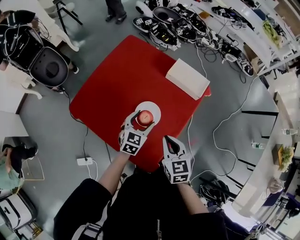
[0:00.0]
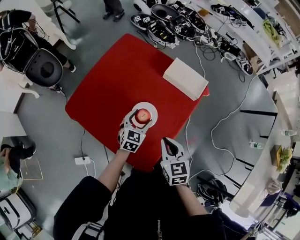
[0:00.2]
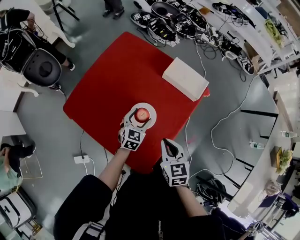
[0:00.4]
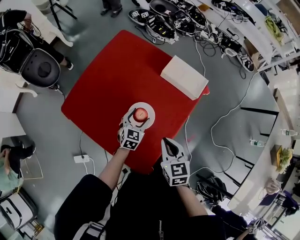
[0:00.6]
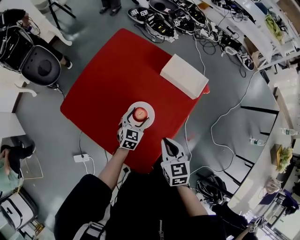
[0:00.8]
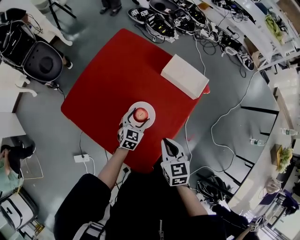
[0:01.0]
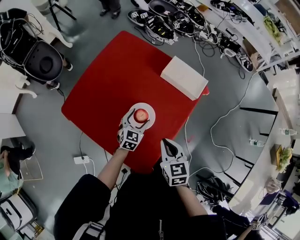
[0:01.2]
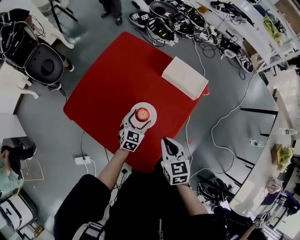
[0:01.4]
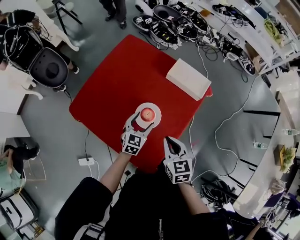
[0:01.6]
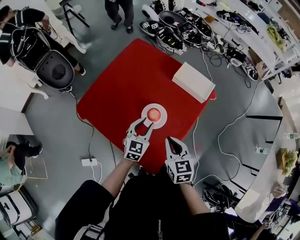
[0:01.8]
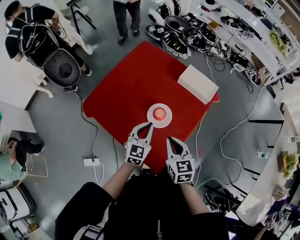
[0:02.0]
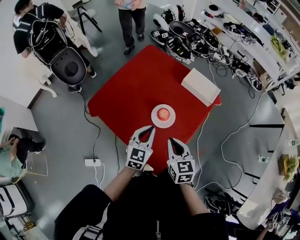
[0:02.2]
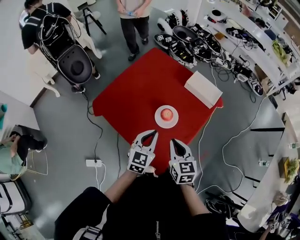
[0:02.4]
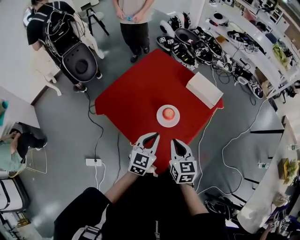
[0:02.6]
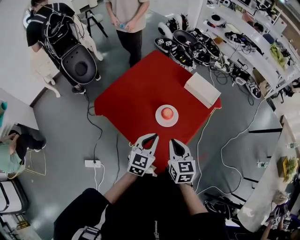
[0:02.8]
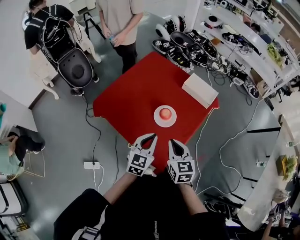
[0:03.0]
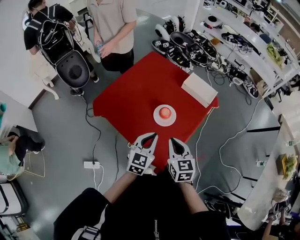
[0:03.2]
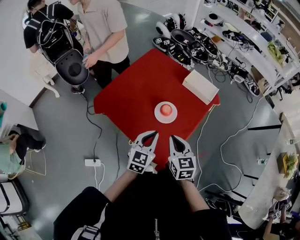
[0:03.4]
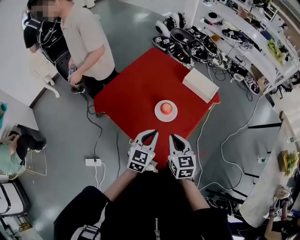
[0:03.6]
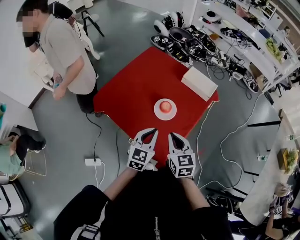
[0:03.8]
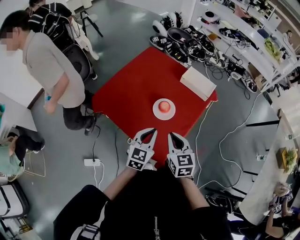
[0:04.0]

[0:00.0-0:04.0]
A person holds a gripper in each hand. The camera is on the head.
0:00.0 to 0:01.4: The left gripper is displaced downward by approximately 10 cm.
0:01.4 to 0:02.6: The left gripper shifts approximately 25 cm upward and backward, and closes its fingers, while the right gripper moves backward and to the left, some 10 cm.
0:02.6 to 0:04.0: There are only small adjustments of the grippers.

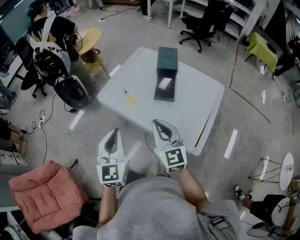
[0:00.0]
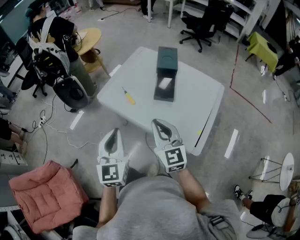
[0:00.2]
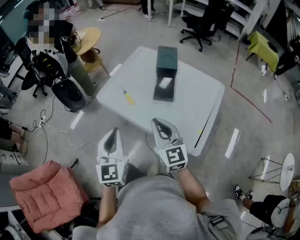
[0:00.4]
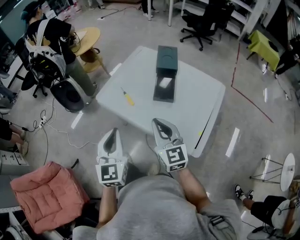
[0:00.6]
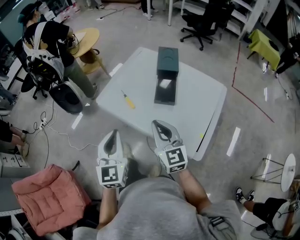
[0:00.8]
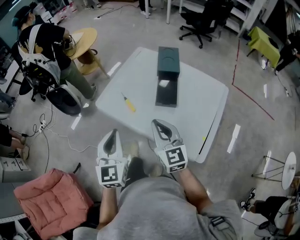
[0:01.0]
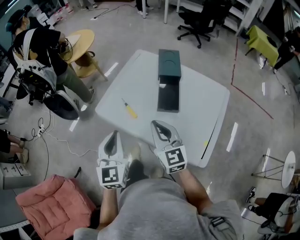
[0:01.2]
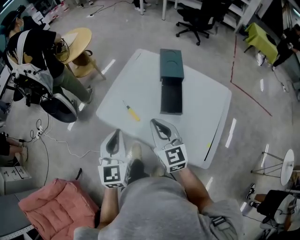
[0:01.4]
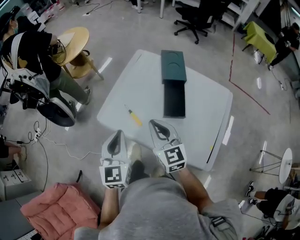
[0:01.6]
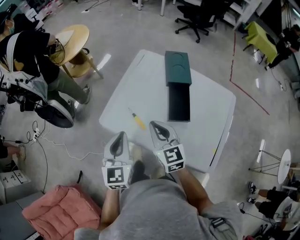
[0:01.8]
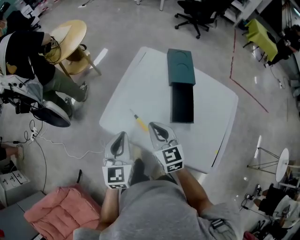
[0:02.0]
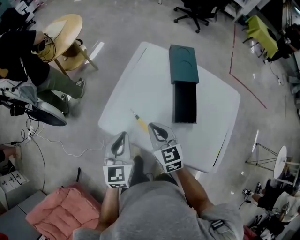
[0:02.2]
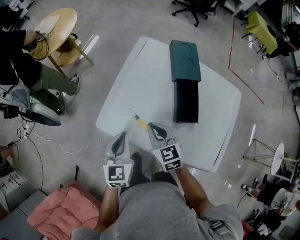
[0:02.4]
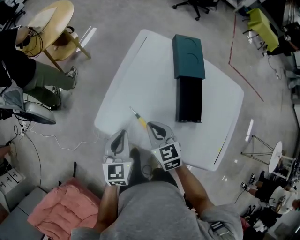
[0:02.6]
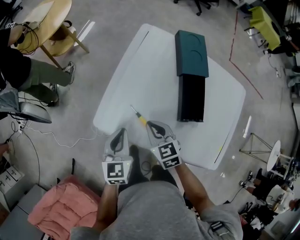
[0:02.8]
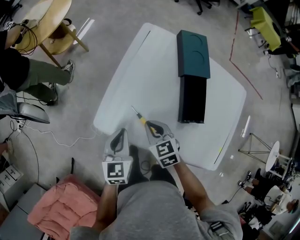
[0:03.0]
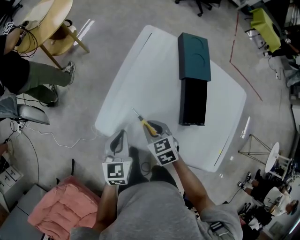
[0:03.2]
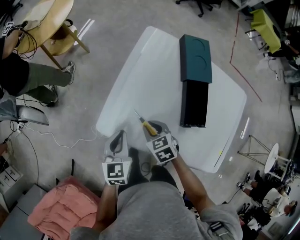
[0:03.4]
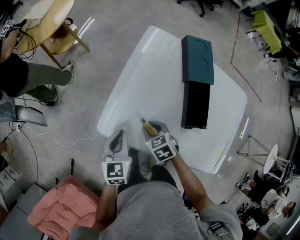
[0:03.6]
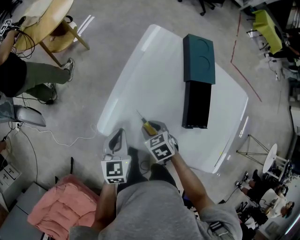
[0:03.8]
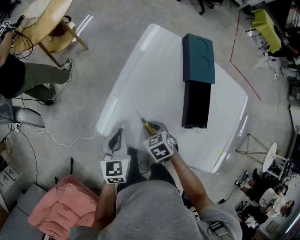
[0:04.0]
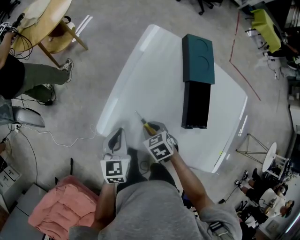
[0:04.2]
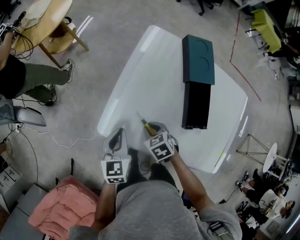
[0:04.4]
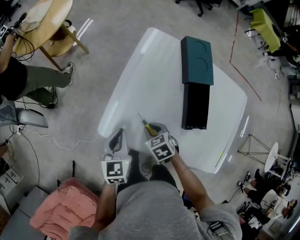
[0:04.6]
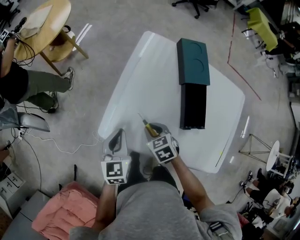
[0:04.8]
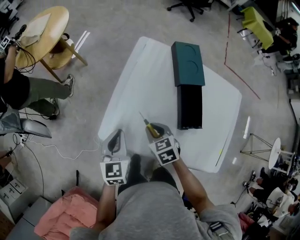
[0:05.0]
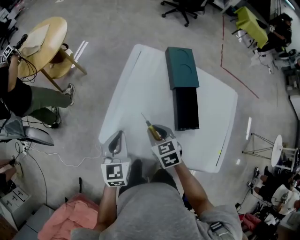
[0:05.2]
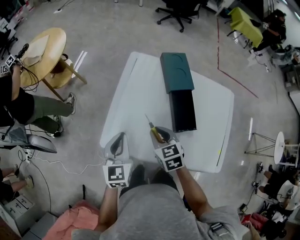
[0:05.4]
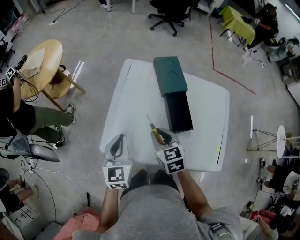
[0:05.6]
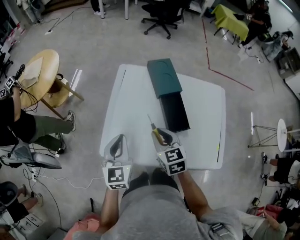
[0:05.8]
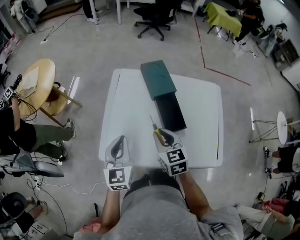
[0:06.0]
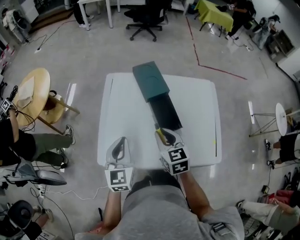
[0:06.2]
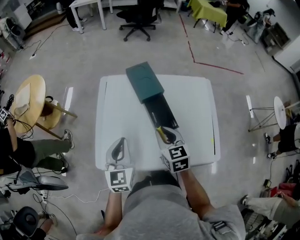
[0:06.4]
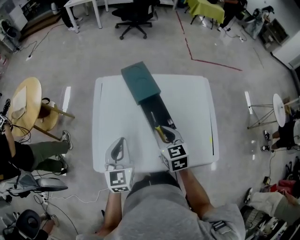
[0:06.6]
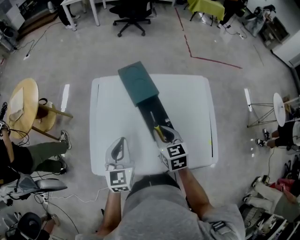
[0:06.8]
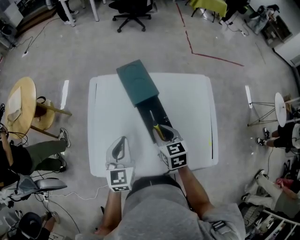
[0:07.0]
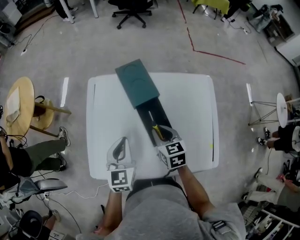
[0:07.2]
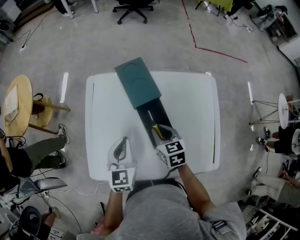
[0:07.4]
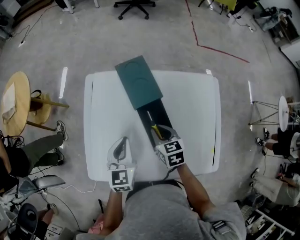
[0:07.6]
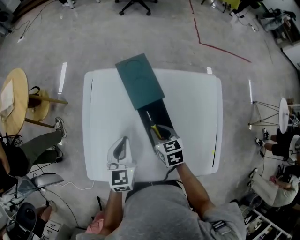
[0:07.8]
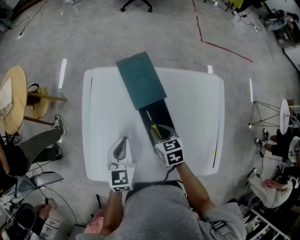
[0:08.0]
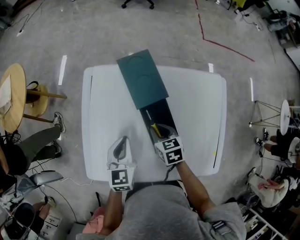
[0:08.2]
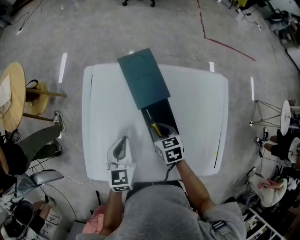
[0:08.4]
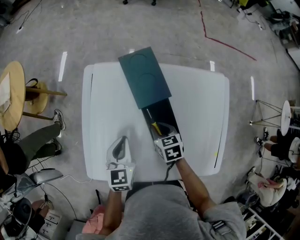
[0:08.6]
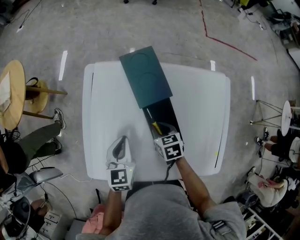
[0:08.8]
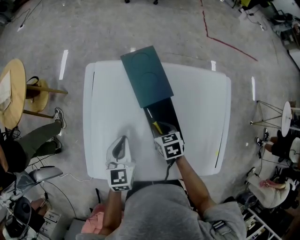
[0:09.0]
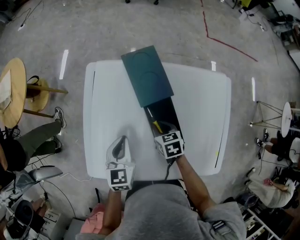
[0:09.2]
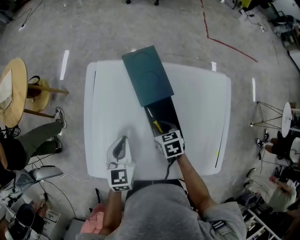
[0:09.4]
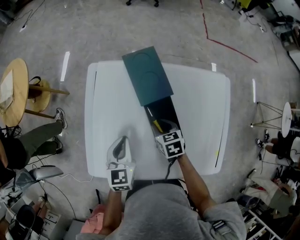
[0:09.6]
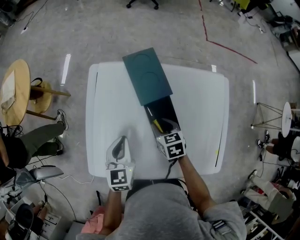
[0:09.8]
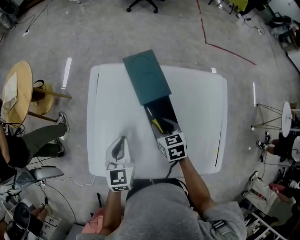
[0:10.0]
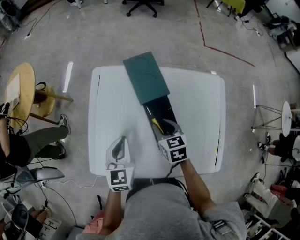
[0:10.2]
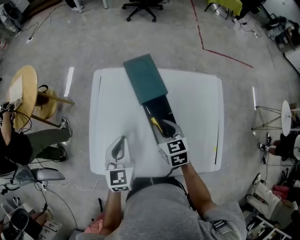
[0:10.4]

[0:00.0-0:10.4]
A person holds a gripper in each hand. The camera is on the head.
0:00.0 to 0:01.4: The grippers both shift forward by about 15 cm.
0:01.4 to 0:03.0: The right gripper is displaced downward, forward and to the left by approximately 30 cm, and angles its fingers downward, by some 30 degrees. Meanwhile the left gripper heads downward and forward, covering about 25 cm, and changes its angle by approximately 20 degrees.
0:03.0 to 0:04.4: The right gripper moves downward, about 5 cm, and swivels approximately 20 degrees.
0:04.4 to 0:06.0: Both grippers travel together upward, about 20 cm. The left gripper rotates approximately 20 degrees; the right gripper tips its fingers upward by approximately 30 degrees.
0:06.0 to 0:07.4: The left gripper moves to the right, forward and downward, about 15 cm; the right gripper is displaced forward, to the right and downward by roughly 20 cm.
0:07.4 to 0:09.0: The right gripper shifts some 10 cm downward. The left gripper travels downward by some 5 cm.
0:09.0 to 0:10.4: The left gripper heads upward, covering roughly 5 cm, while the right gripper shifts roughly 15 cm upward, and swivels some 20 degrees.

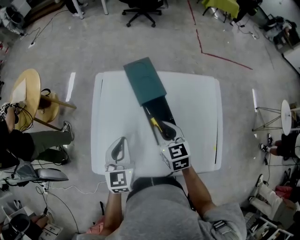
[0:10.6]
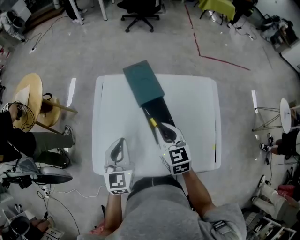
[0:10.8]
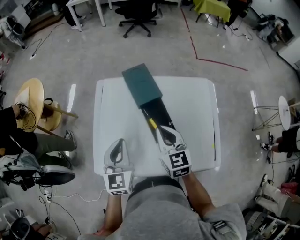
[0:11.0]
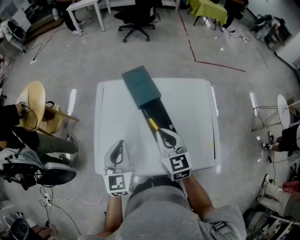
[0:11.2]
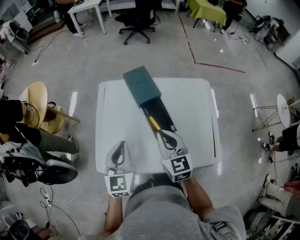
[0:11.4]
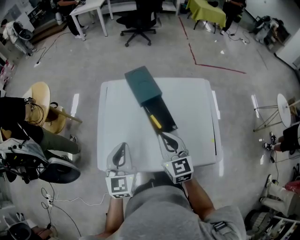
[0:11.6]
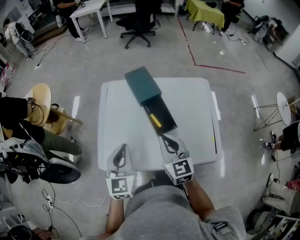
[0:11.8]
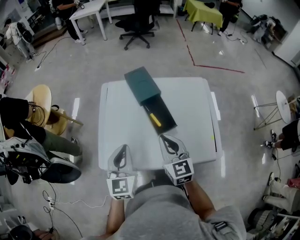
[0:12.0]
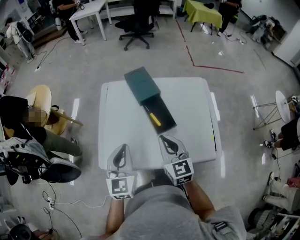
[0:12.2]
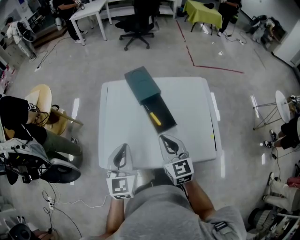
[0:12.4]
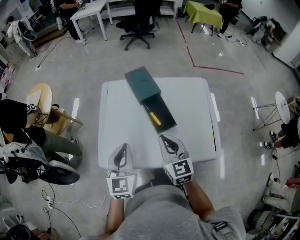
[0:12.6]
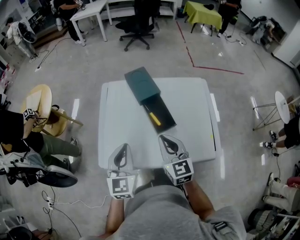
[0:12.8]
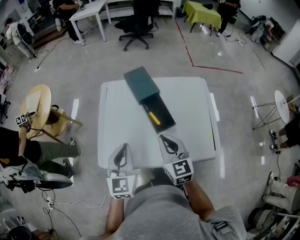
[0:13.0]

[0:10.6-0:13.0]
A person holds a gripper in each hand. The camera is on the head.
0:10.6 to 0:11.8: The grippers both shift backward and upward by about 15 cm.
0:11.8 to 0:13.0: There are only small adjustments of the grippers.

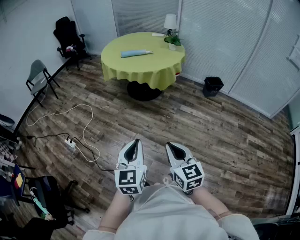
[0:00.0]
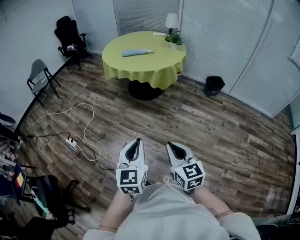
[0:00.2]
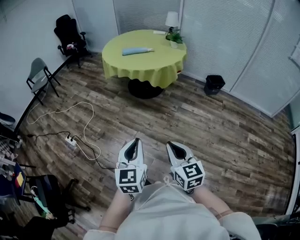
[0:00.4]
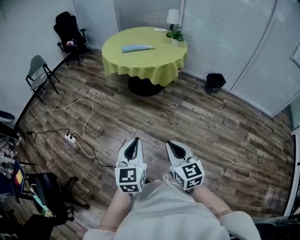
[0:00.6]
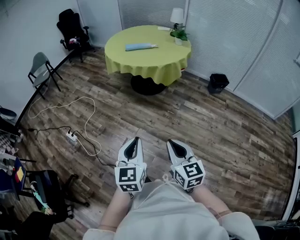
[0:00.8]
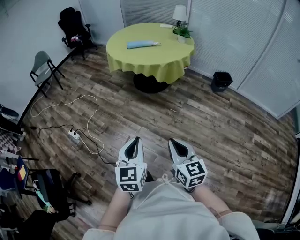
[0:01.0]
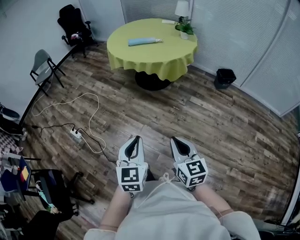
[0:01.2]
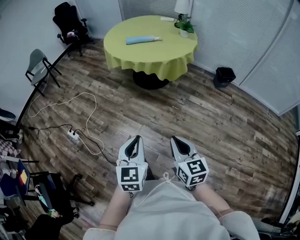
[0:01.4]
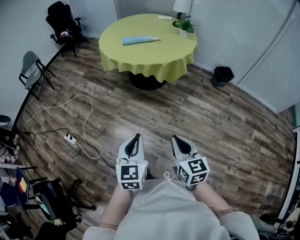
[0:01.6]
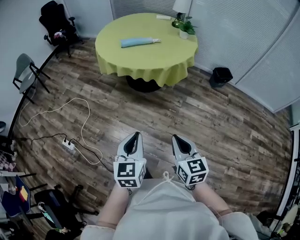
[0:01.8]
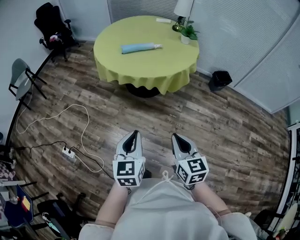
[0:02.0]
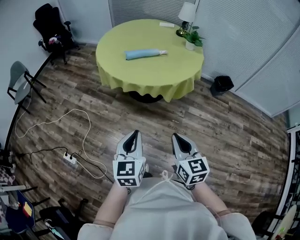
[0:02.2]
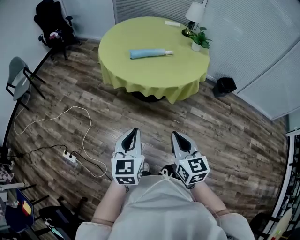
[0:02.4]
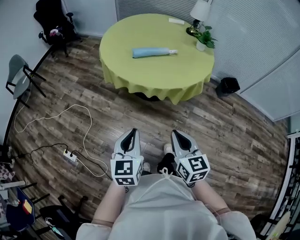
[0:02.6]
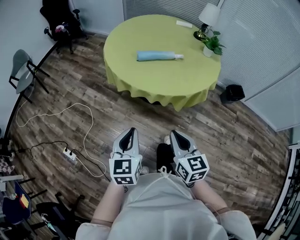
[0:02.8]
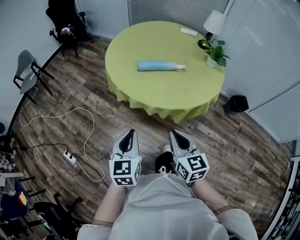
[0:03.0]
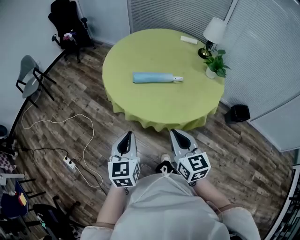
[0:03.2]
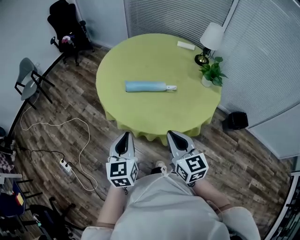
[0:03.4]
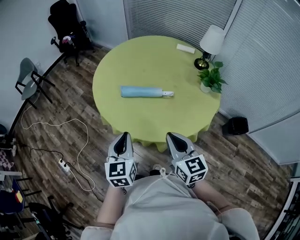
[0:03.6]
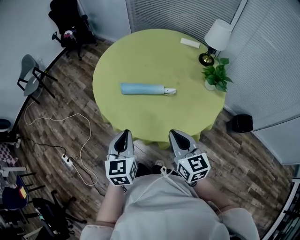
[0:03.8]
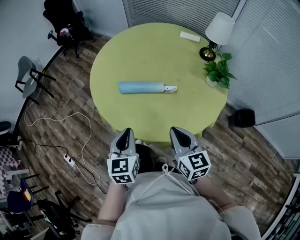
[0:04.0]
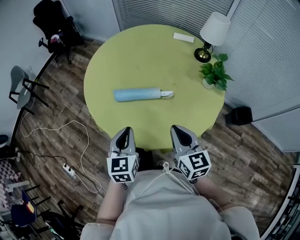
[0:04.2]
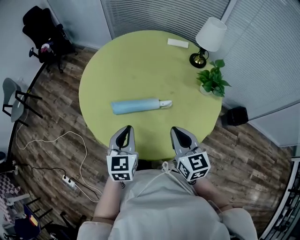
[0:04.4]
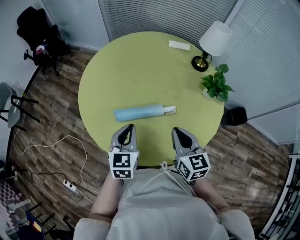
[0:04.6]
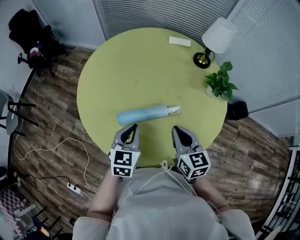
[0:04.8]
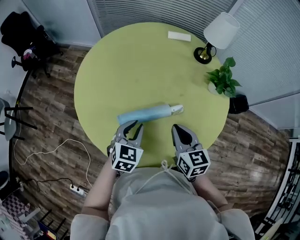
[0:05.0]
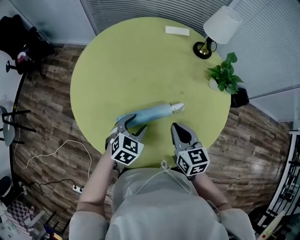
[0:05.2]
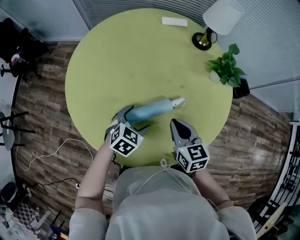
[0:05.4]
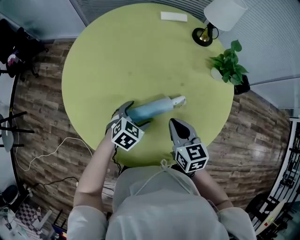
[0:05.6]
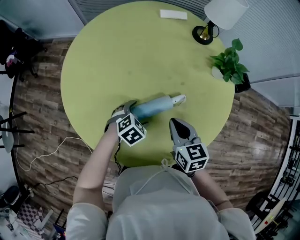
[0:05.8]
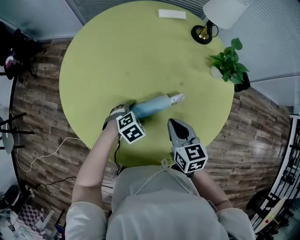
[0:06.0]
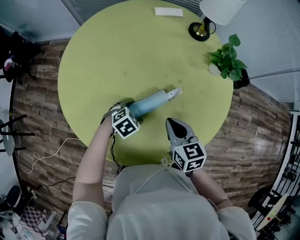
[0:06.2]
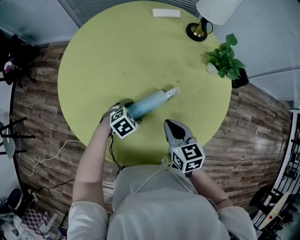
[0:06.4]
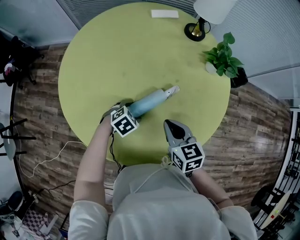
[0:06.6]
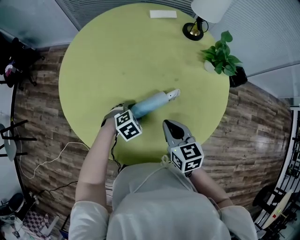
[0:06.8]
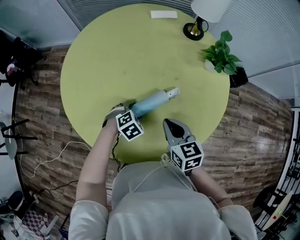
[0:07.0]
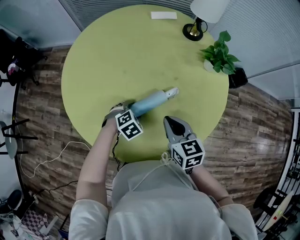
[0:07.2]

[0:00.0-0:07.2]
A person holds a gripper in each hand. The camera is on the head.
0:00.0 to 0:01.4: Both grippers move forward, some 10 cm.
0:01.4 to 0:02.8: The two grippers travel together, forward, roughly 50 cm.
0:02.8 to 0:04.4: Both grippers are carried forward and to the right, some 40 cm.
0:04.4 to 0:05.8: The right gripper shifts by approximately 20 cm, and changes its angle by some 20 degrees, while the left gripper heads downward, covering about 25 cm, tips its fingers downward by approximately 40 degrees, and opens its fingers.
0:05.8 to 0:07.2: The grippers make only small movements.
